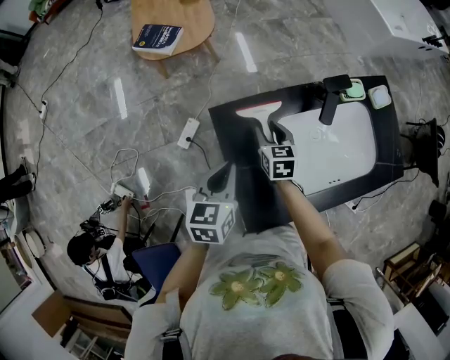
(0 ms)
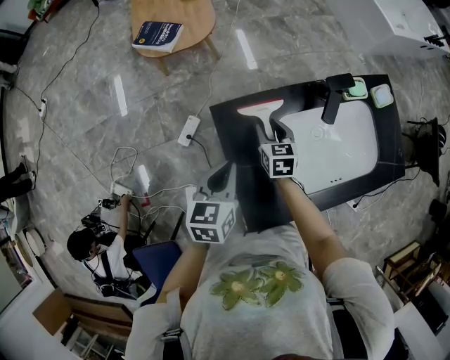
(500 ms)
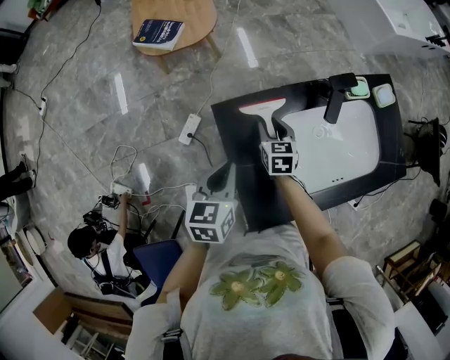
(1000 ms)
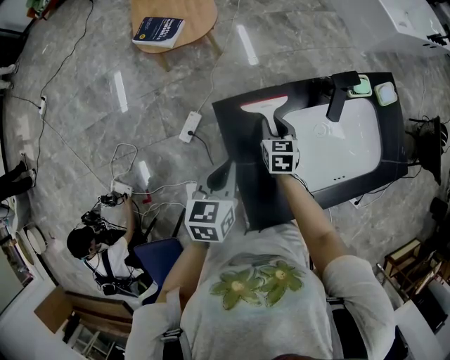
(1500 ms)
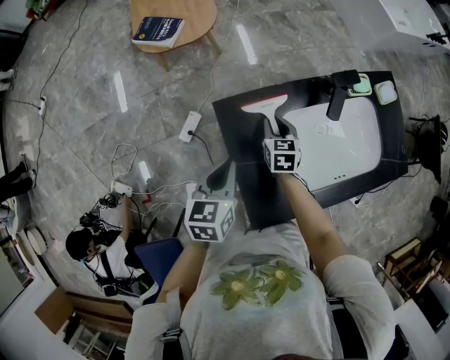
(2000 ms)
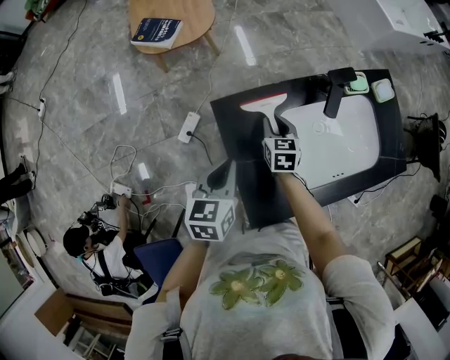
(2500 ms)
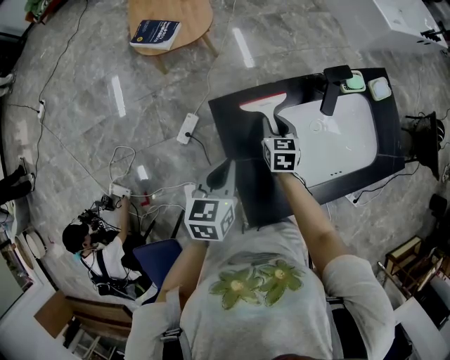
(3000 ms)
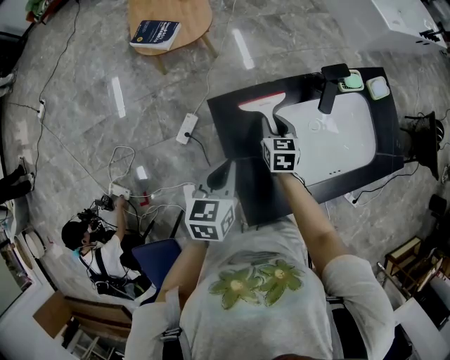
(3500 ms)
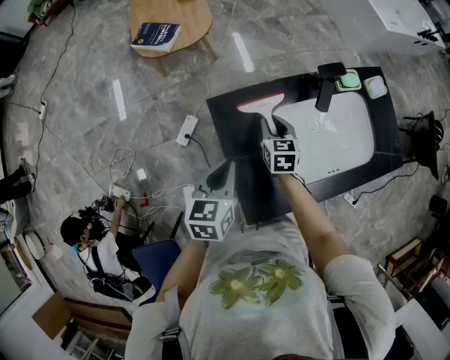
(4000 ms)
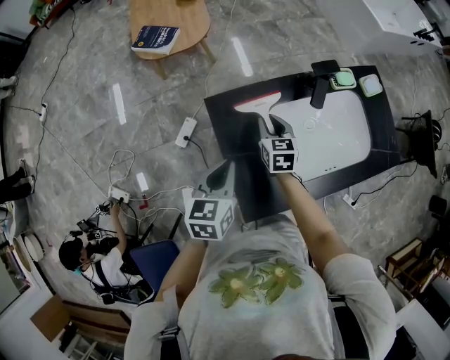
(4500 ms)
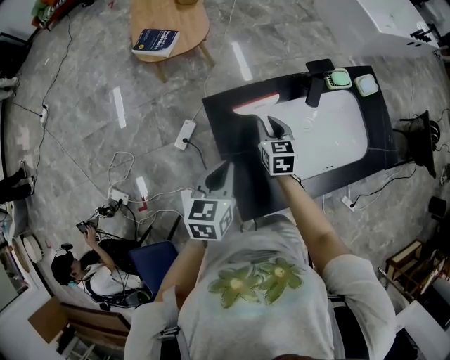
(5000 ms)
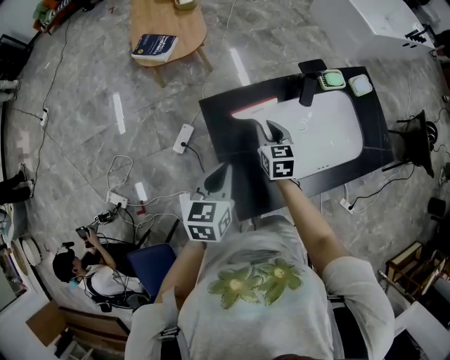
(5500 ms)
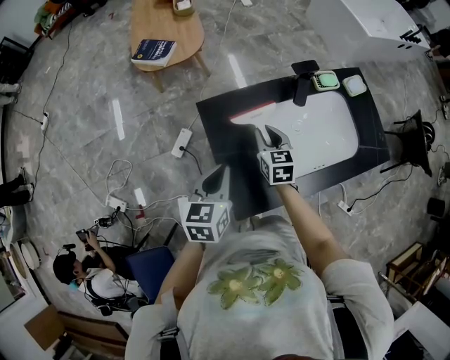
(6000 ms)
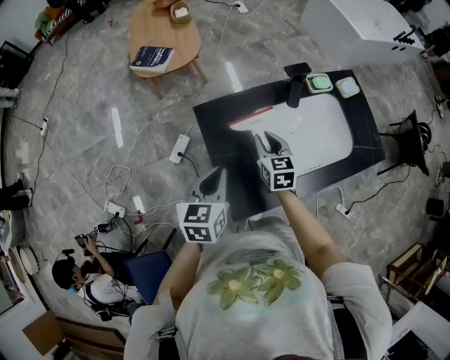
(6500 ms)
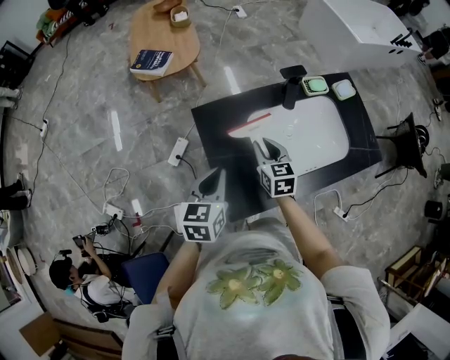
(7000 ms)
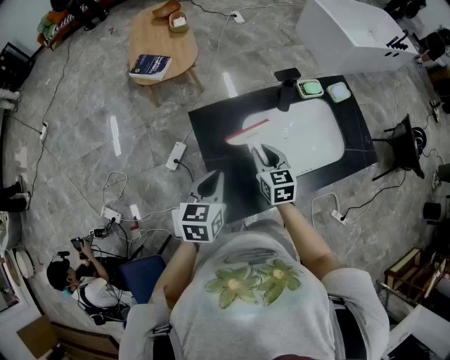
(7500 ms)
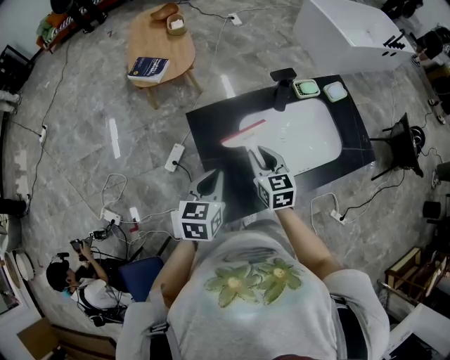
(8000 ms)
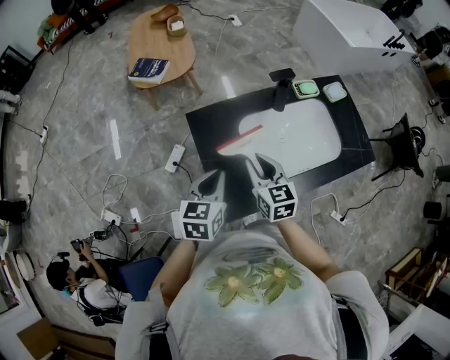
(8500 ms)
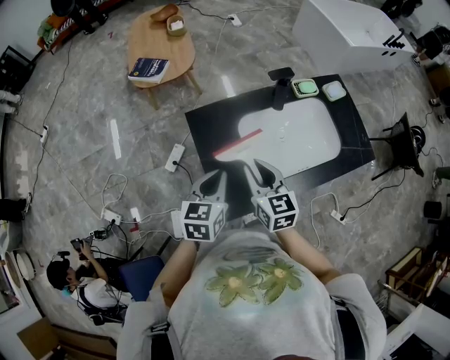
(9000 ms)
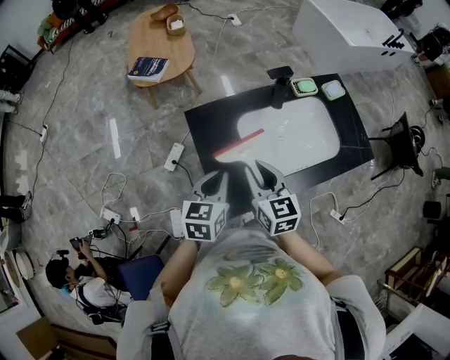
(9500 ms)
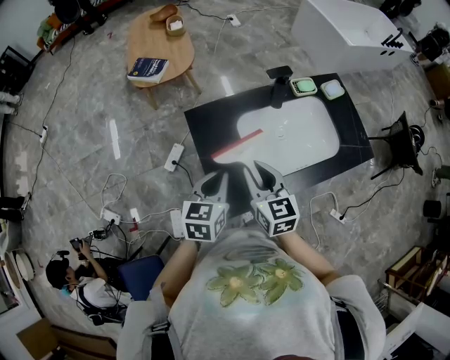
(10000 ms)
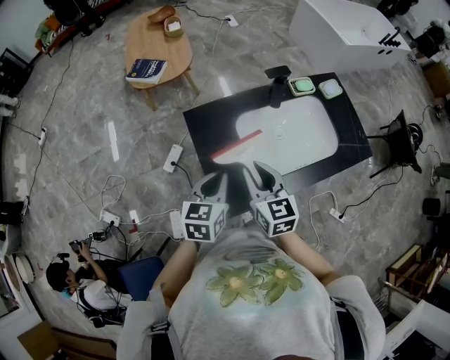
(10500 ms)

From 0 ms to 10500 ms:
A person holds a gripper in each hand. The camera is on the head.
From 0 ms to 4000 ms: The grippers stay close to where they were, moving slightly.
From 4000 ms to 6500 ms: The right gripper is displaced upward and backward by about 10 cm. Meanwhile the left gripper travels backward by about 5 cm.
From 6500 ms to 8500 ms: The right gripper is displaced backward and upward by roughly 10 cm.
From 8500 ms to 10500 ms: The right gripper moves approximately 5 cm.

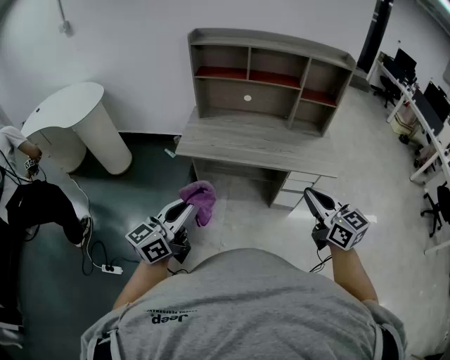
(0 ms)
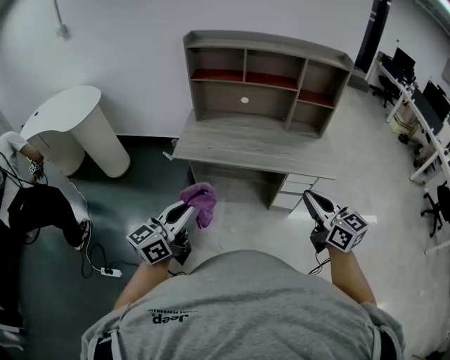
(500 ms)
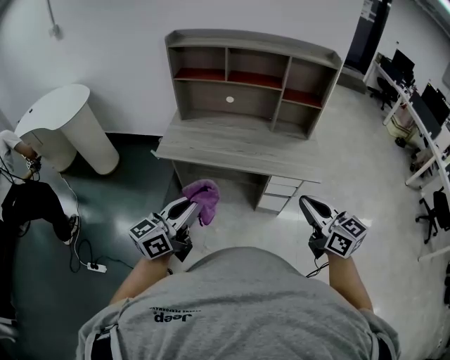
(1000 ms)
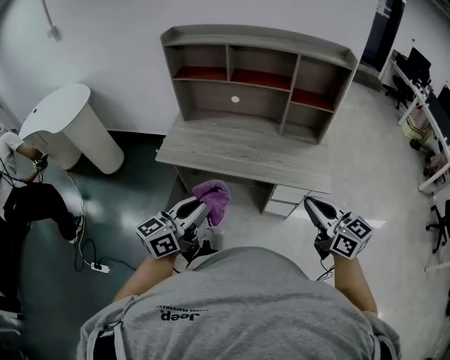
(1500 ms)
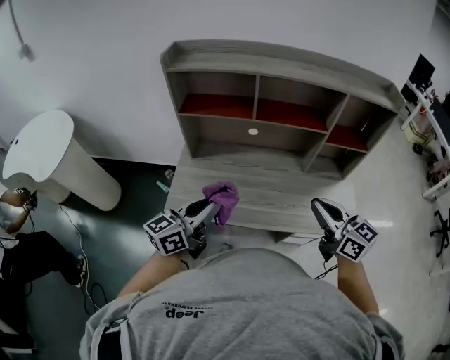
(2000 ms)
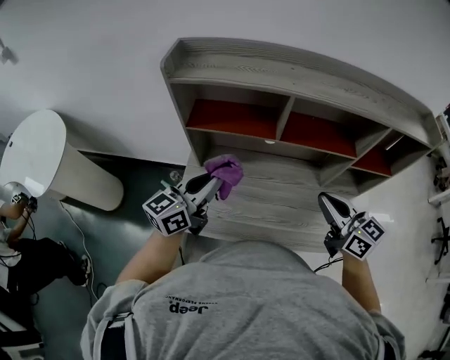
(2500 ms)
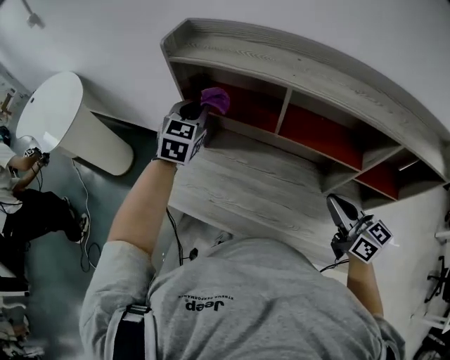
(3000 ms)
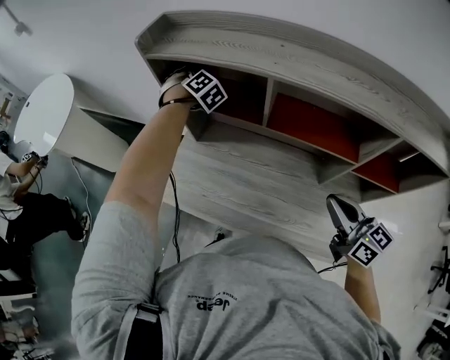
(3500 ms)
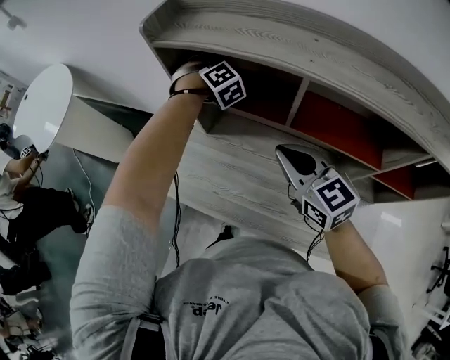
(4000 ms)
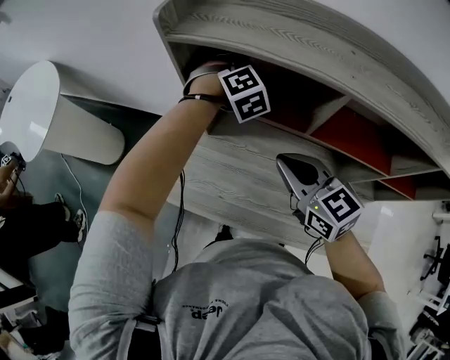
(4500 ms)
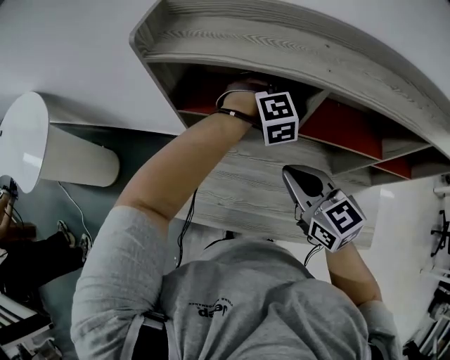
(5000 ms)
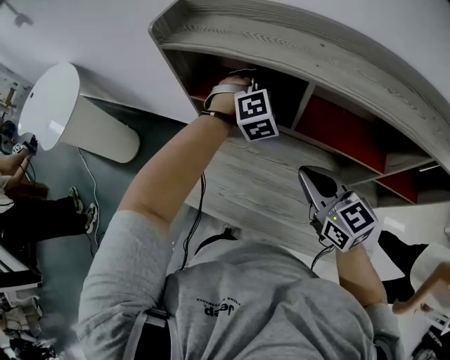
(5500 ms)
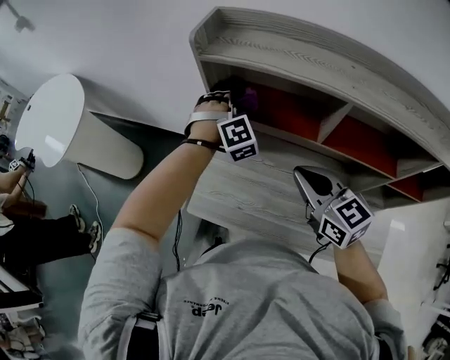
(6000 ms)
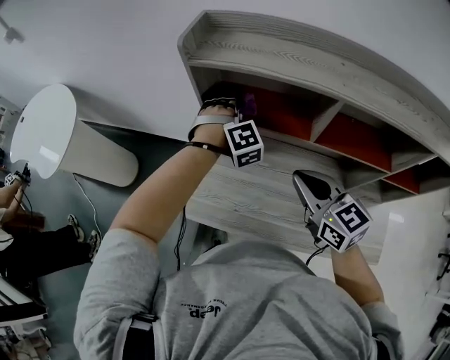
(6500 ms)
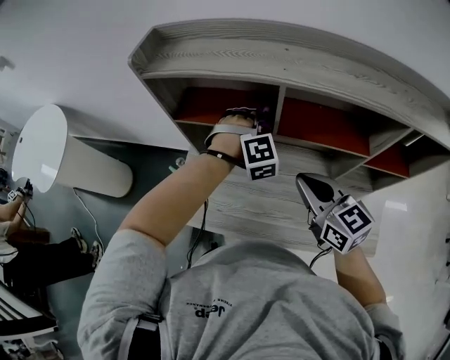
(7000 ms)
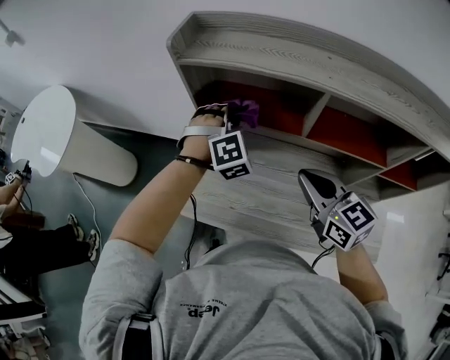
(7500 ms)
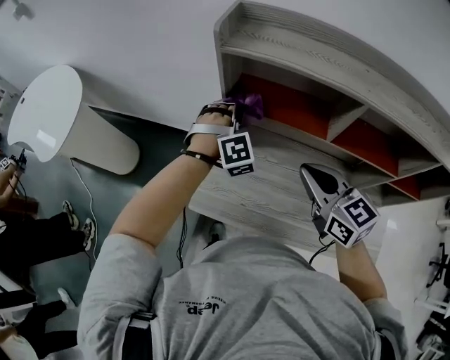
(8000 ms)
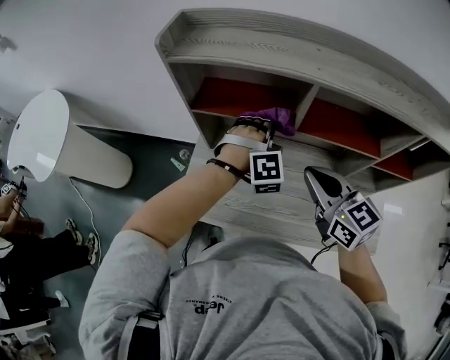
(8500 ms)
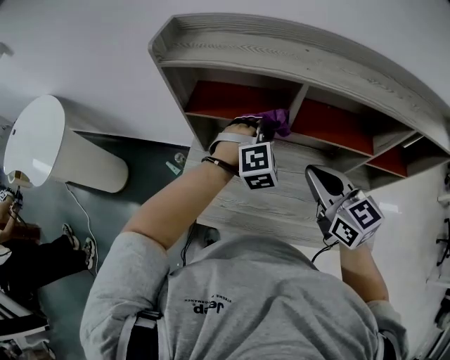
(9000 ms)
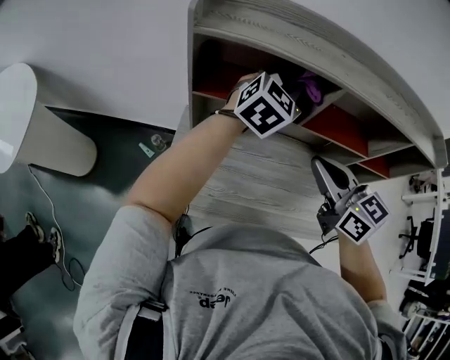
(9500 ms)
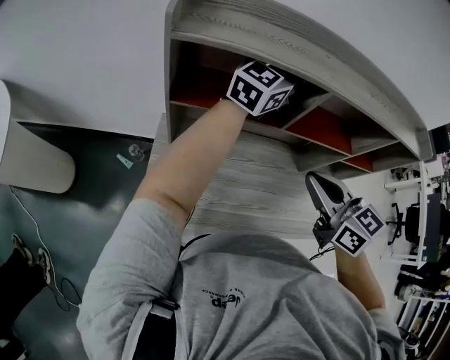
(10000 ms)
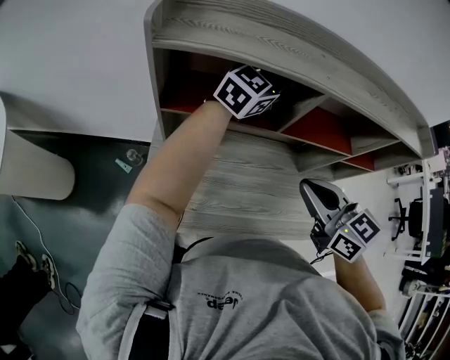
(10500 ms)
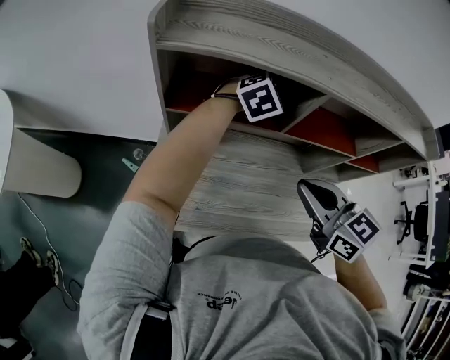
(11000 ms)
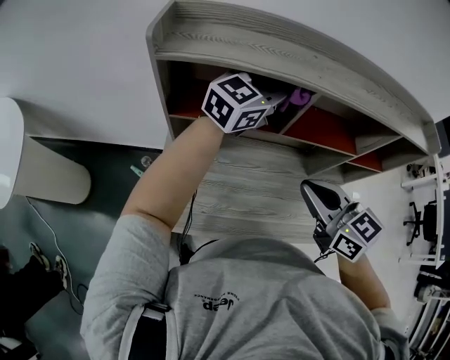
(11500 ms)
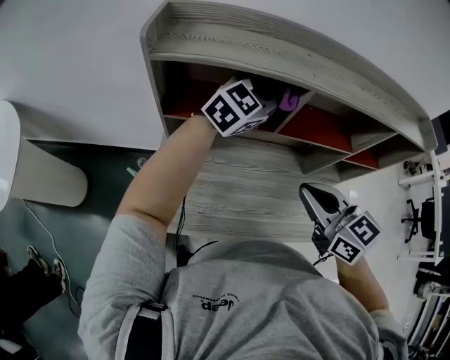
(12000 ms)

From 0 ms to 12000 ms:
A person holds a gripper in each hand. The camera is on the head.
From 0 ms to 2000 ms: Both grippers move forward, about 40 cm.
From 2000 ms to 4000 ms: The right gripper changes place by some 30 cm, and rotates approximately 20 degrees; the left gripper changes place by some 50 cm, and tips its fingers downward by approximately 40 degrees.
From 4000 ms to 6000 ms: The right gripper ends up some 5 cm from where it was.
From 6000 ms to 8000 ms: The right gripper goes to the right and returns, some 10 cm each way, while the left gripper moves about 15 cm to the right and comes back.
From 8000 ms to 10000 ms: The left gripper changes place by roughly 30 cm, and angles its fingers upward, by some 40 degrees, while the right gripper moves about 10 cm.
From 10000 ms to 12000 ms: The left gripper swings up and down, roughly 15 cm each way, with 2 reversals, and changes its angle by about 30 degrees.

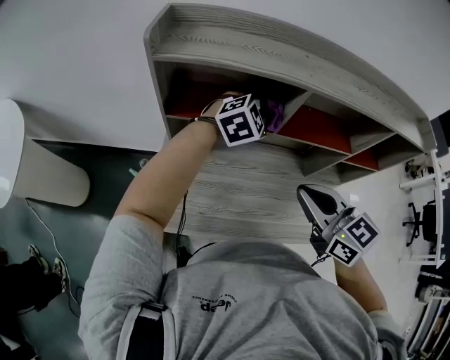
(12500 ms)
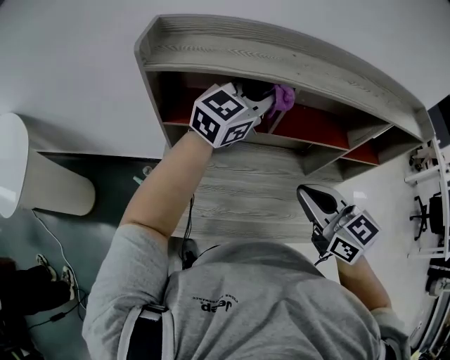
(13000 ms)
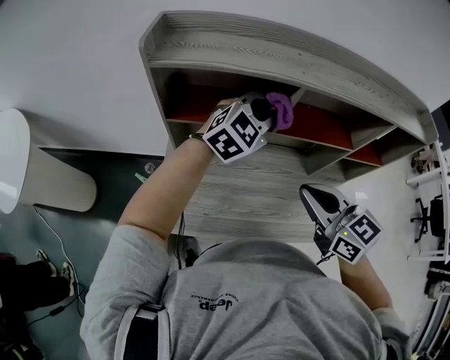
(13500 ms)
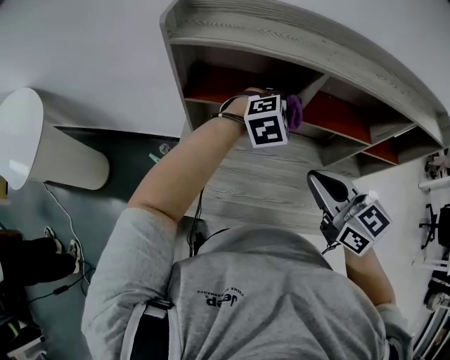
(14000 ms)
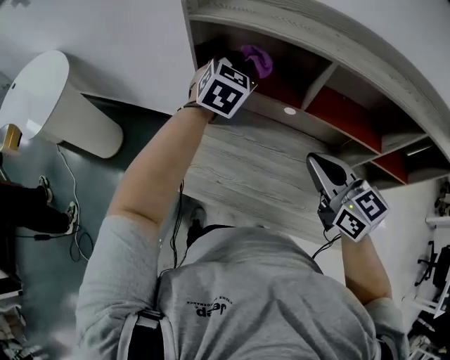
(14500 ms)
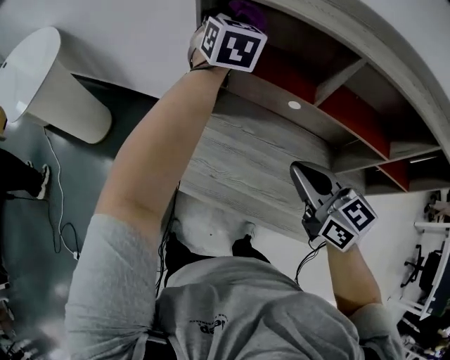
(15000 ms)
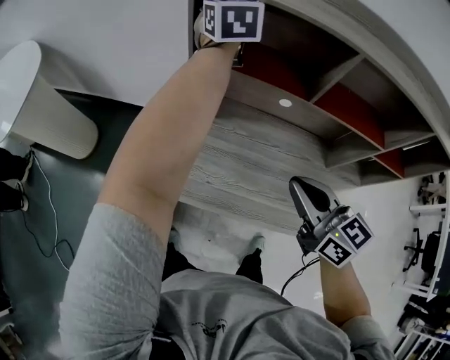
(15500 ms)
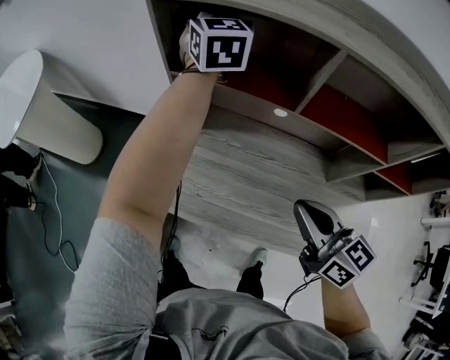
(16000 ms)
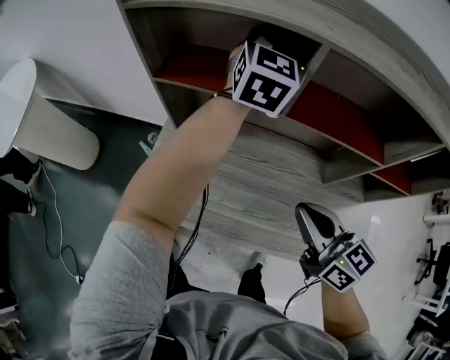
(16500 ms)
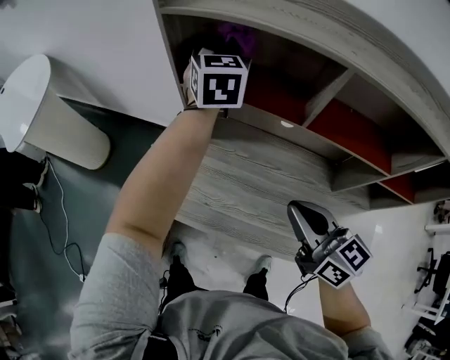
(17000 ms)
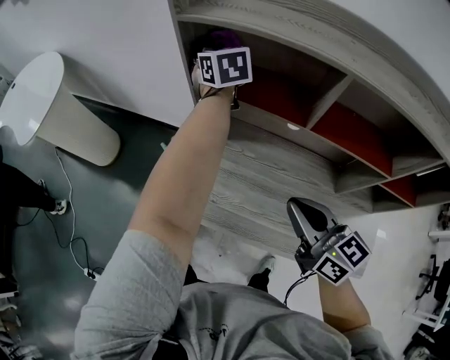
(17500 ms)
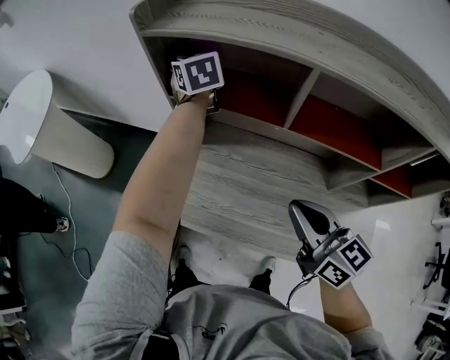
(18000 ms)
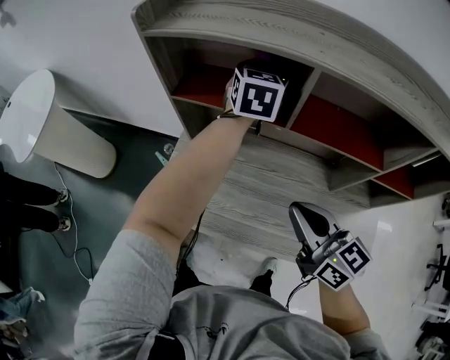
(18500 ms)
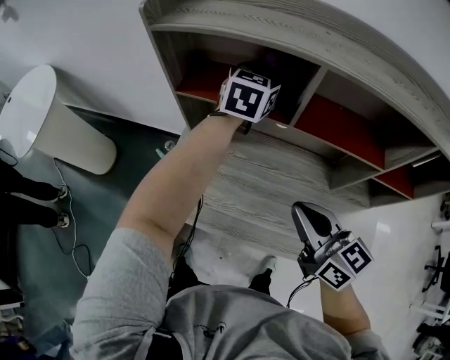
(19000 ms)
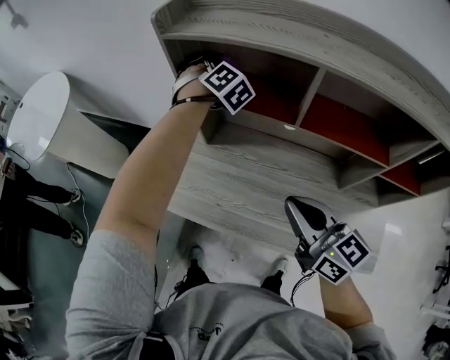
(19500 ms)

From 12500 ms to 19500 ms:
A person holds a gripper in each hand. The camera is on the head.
From 12500 ms to 14500 ms: The left gripper swings up and down, some 15 cm each way, with 2 reversals, and swivels about 50 degrees.
From 14500 ms to 16000 ms: The right gripper travels downward by approximately 10 cm. Meanwhile the left gripper moves forward and upward, about 10 cm, and rotates roughly 30 degrees.
From 16000 ms to 17500 ms: The left gripper travels downward by roughly 10 cm, reaches roughly 15 cm to the right, then returns, and changes its angle by approximately 30 degrees; the right gripper moves approximately 5 cm.
From 17500 ms to 19500 ms: The left gripper rolls clockwise, seen from behind, by roughly 70 degrees.
